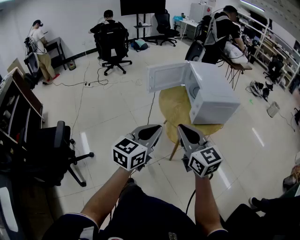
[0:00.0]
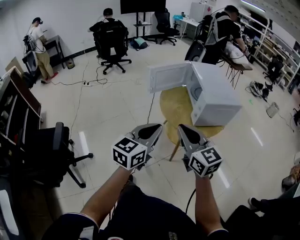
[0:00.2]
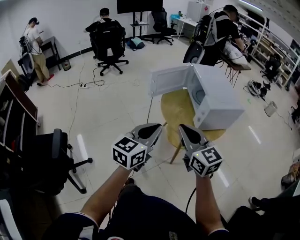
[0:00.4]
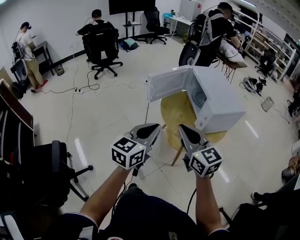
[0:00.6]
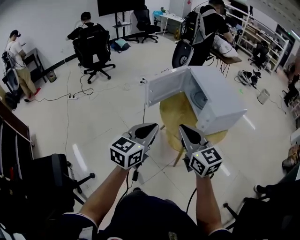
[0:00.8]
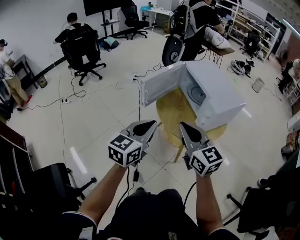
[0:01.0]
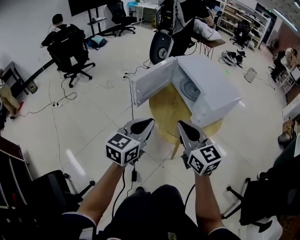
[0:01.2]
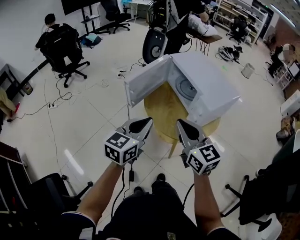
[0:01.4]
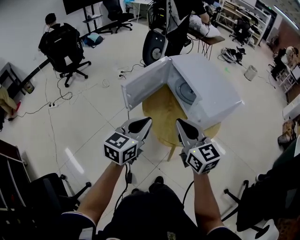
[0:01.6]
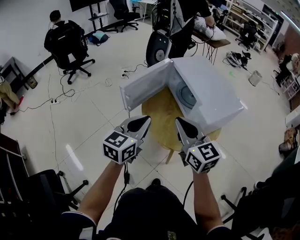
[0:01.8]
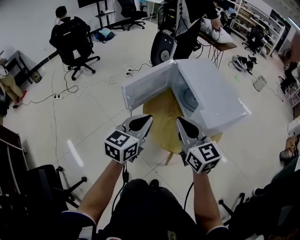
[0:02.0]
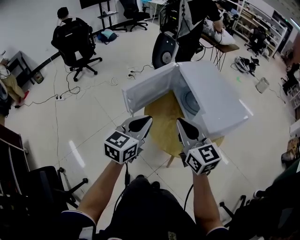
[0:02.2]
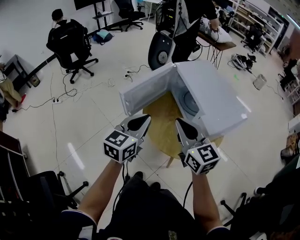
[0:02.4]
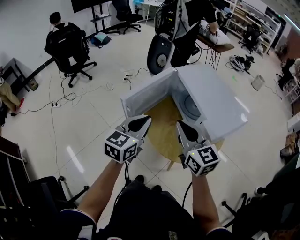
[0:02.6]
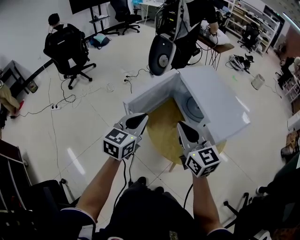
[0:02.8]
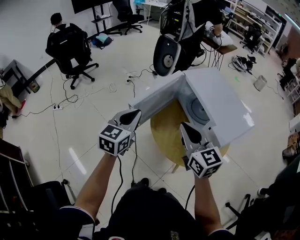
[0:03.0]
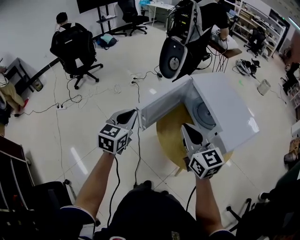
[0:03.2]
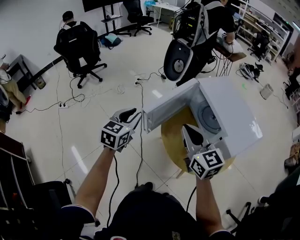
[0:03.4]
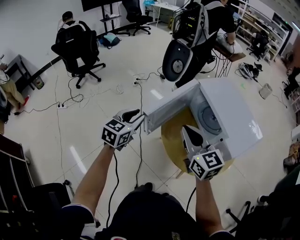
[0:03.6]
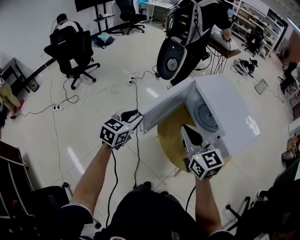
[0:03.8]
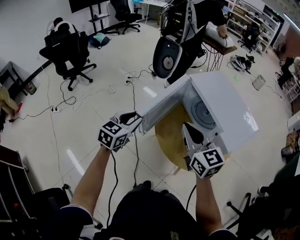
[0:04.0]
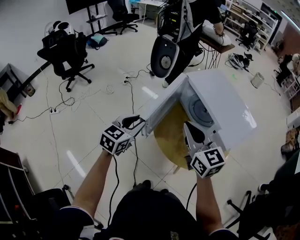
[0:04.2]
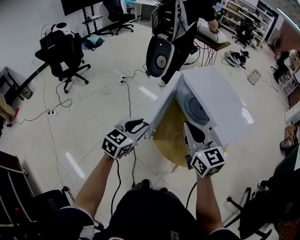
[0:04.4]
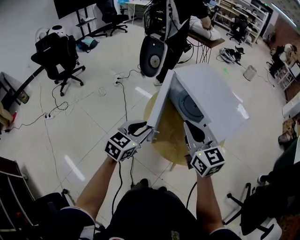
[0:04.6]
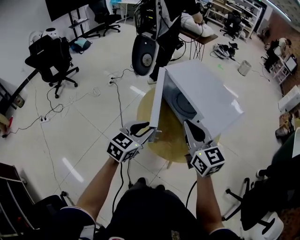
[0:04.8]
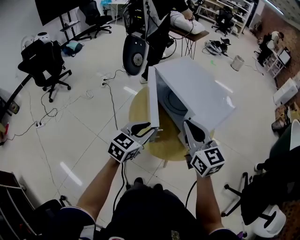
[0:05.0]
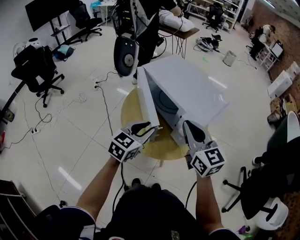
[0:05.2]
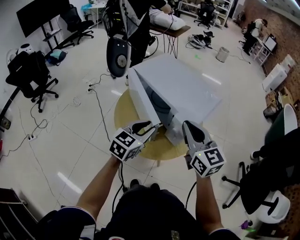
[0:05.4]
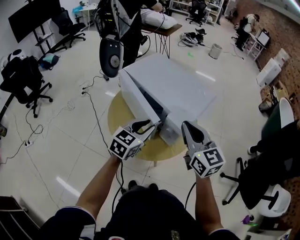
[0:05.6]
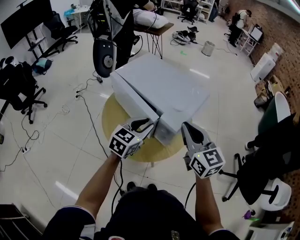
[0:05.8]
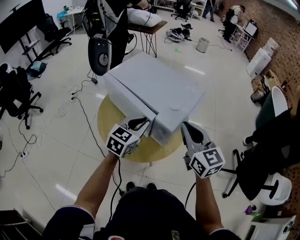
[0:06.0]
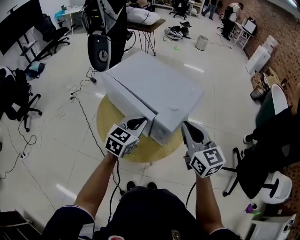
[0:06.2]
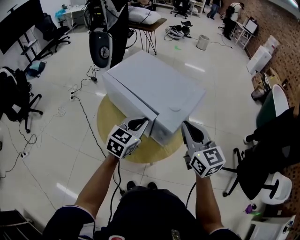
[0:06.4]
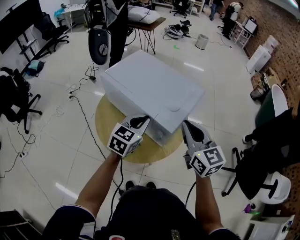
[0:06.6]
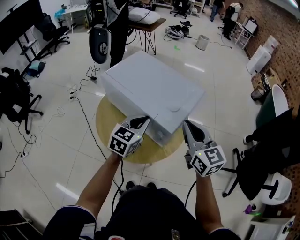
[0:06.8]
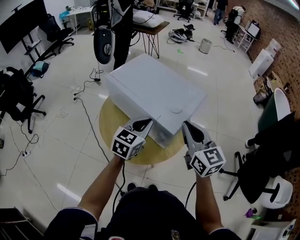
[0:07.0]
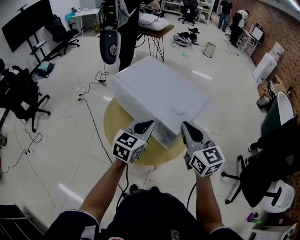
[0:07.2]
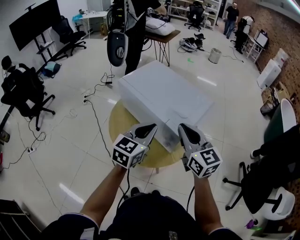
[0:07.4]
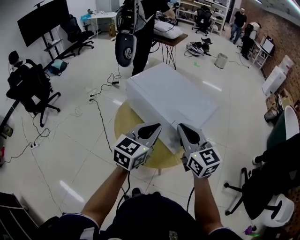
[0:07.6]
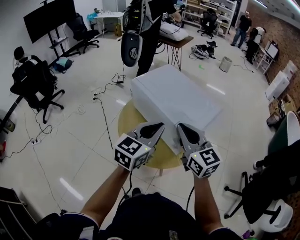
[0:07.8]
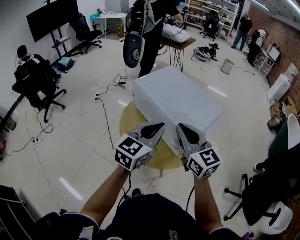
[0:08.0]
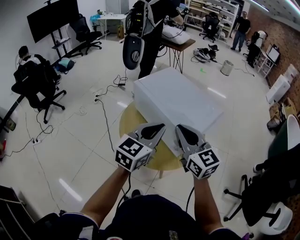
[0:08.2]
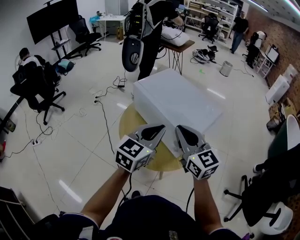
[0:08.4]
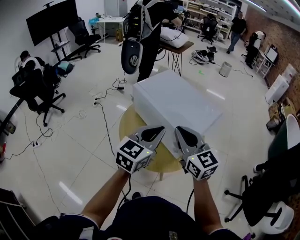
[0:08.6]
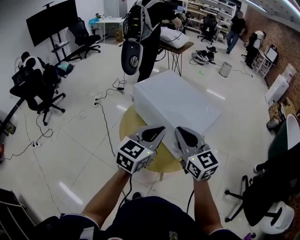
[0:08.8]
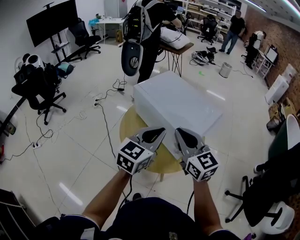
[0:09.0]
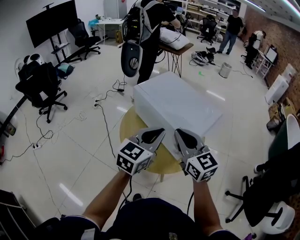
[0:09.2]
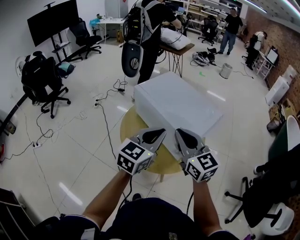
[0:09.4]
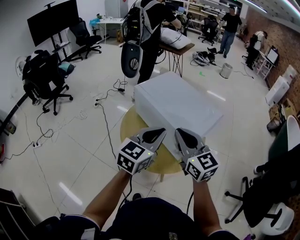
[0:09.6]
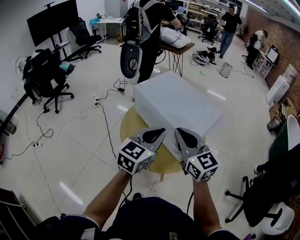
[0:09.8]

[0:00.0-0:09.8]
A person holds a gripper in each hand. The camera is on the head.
0.0 to 1.4 s: The left gripper travels forward and to the left by roughly 25 cm, while the right gripper is displaced forward by roughly 20 cm, and changes its angle by some 20 degrees.
1.4 to 2.8 s: The grippers both shift forward by approximately 15 cm.
2.8 to 4.2 s: The left gripper heads downward and to the left, covering about 10 cm, and opens up.
4.2 to 5.6 s: The two grippers go about 25 cm to the right. The right gripper changes its angle by some 20 degrees. Meanwhile the left gripper rotates roughly 20 degrees.
5.6 to 7.0 s: The left gripper moves approximately 5 cm, and closes.
7.0 to 8.4 s: The left gripper is displaced upward and backward by approximately 10 cm, while the right gripper travels to the left by some 10 cm.
8.4 to 9.8 s: The two grippers keep their place.

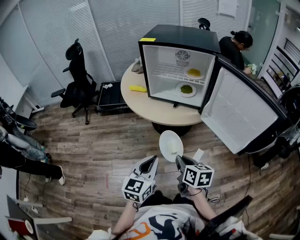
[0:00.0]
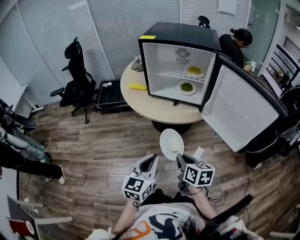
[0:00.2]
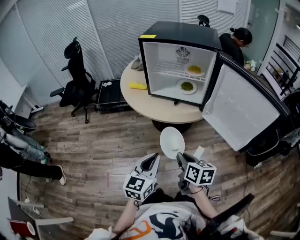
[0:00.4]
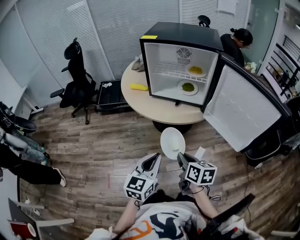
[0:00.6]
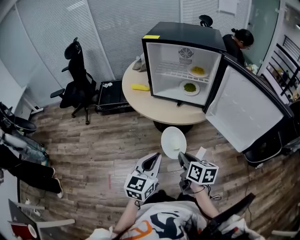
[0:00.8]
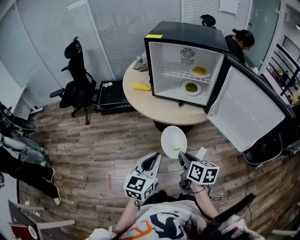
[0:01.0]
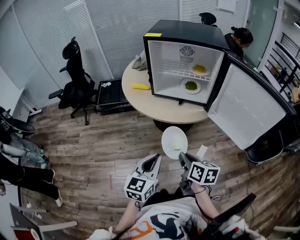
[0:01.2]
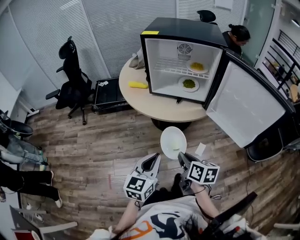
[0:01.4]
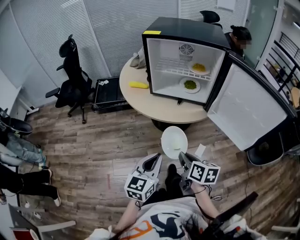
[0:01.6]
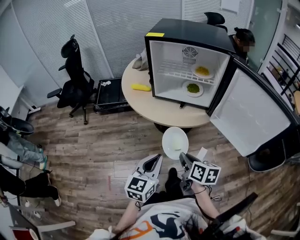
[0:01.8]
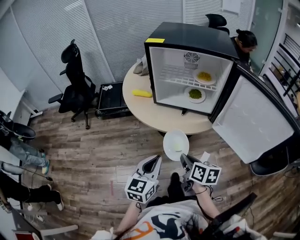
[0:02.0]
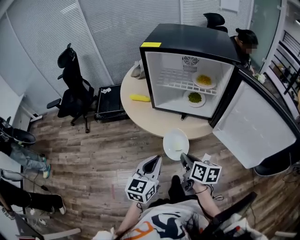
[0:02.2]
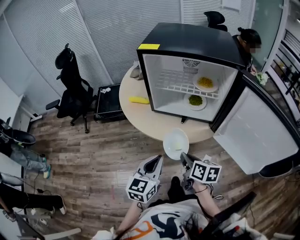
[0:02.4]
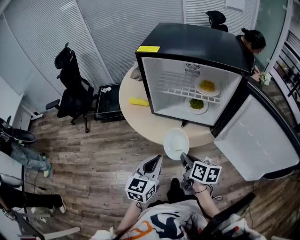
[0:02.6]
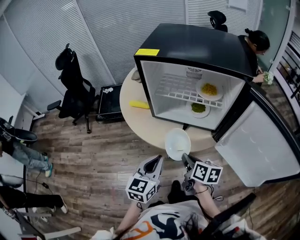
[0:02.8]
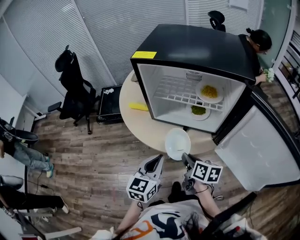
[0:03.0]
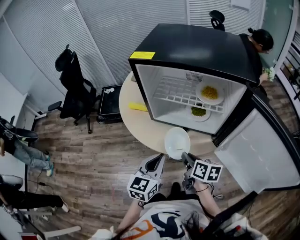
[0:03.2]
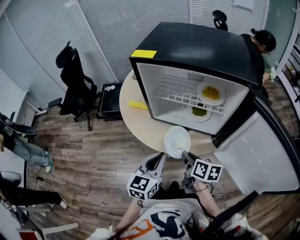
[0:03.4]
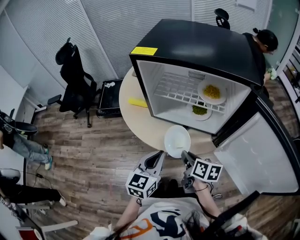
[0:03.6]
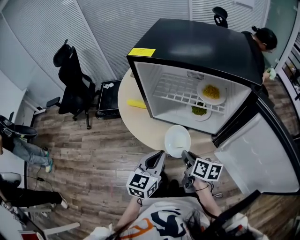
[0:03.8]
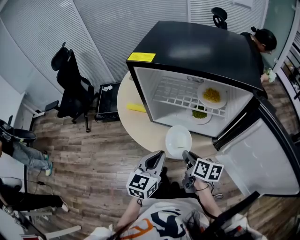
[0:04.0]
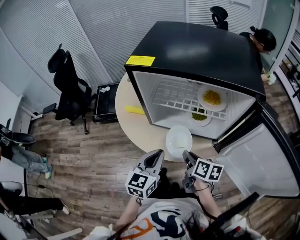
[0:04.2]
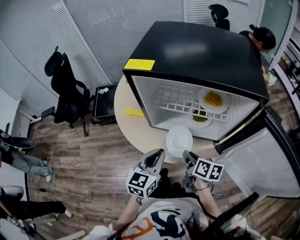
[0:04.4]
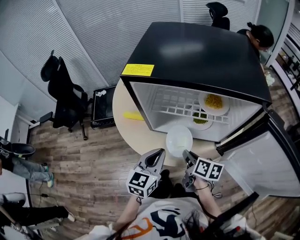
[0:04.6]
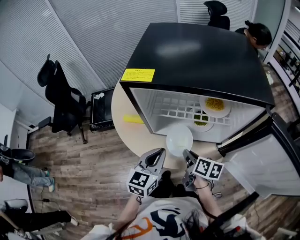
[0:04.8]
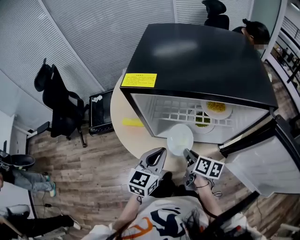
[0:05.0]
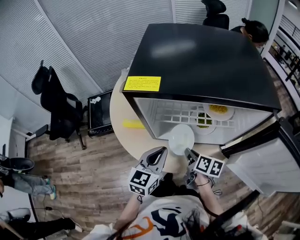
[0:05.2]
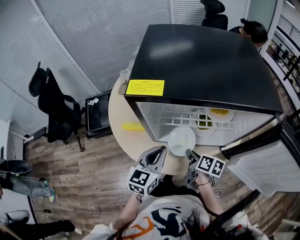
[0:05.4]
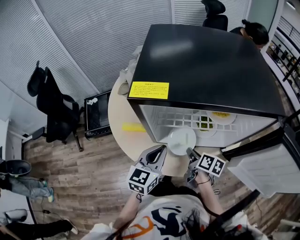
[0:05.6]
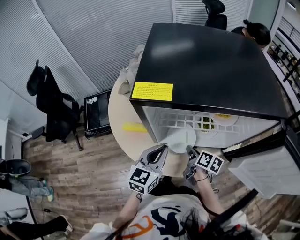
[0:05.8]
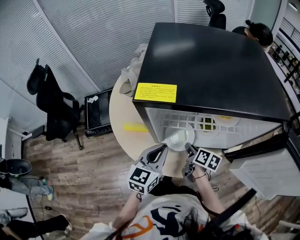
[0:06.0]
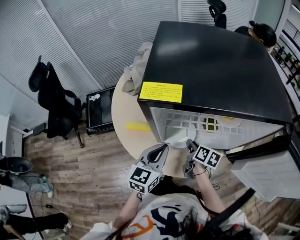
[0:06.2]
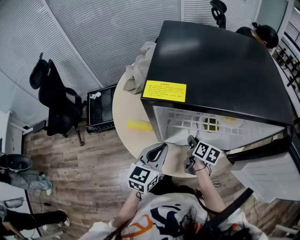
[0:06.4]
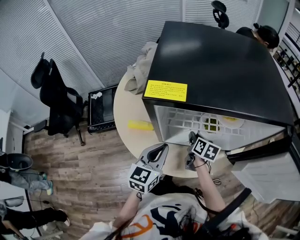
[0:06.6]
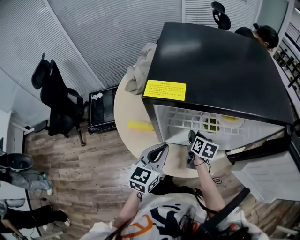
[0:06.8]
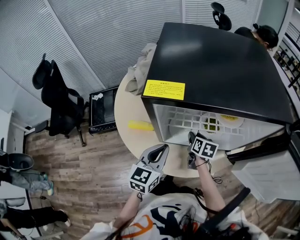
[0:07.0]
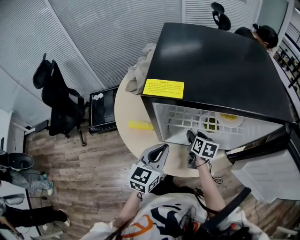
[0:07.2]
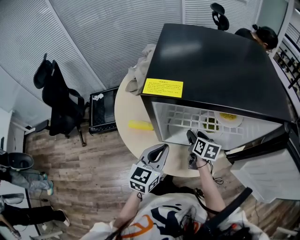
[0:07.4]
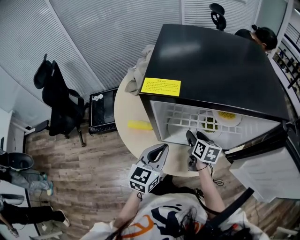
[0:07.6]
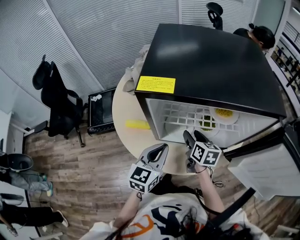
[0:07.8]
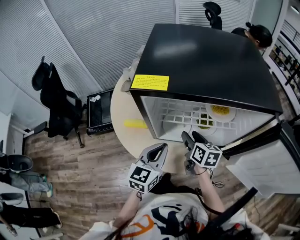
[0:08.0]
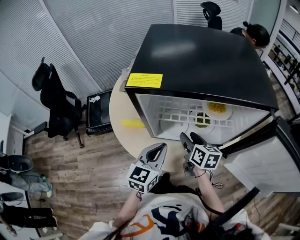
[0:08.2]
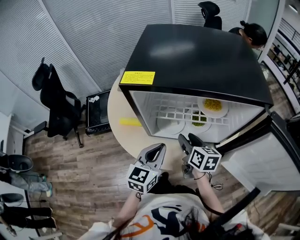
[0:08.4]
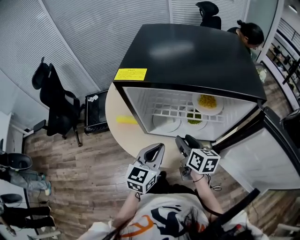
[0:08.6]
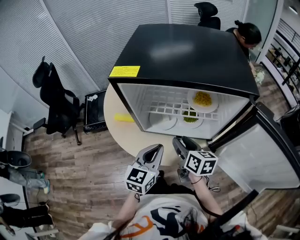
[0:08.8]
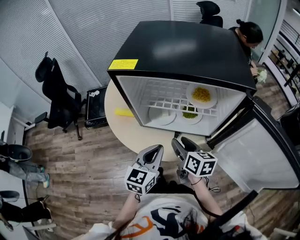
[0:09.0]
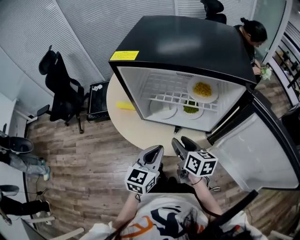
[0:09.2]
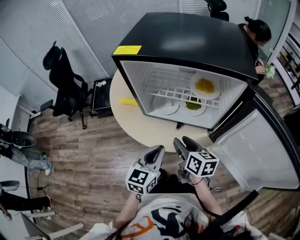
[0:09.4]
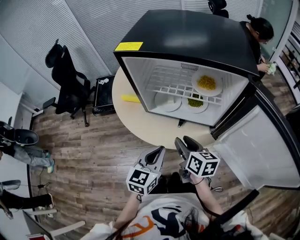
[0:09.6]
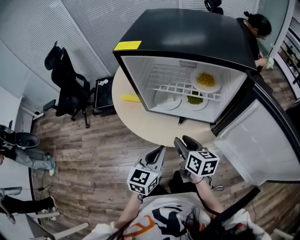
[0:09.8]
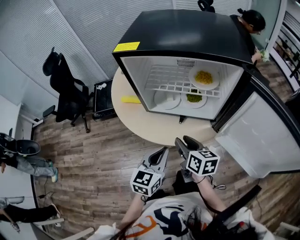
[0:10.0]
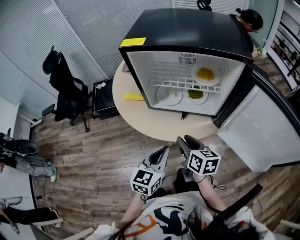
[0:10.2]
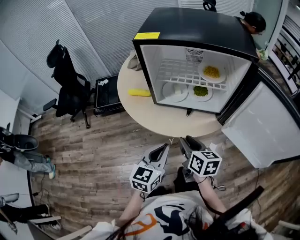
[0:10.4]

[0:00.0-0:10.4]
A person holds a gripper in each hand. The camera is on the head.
0.0 to 1.4 s: The grippers stay close to where they were, moving slightly.
1.4 to 3.0 s: The two grippers go some 20 cm forward.
3.0 to 4.4 s: The grippers both shift forward by about 10 cm.
4.4 to 6.0 s: The right gripper shifts some 15 cm forward and downward. The left gripper is displaced forward by roughly 10 cm.
6.0 to 7.4 s: The right gripper travels forward by roughly 5 cm, swivels some 20 degrees, and opens.
7.4 to 9.0 s: The right gripper travels backward and upward by some 15 cm. The left gripper shifts roughly 15 cm to the right and backward.
9.0 to 10.4 s: The left gripper shifts about 10 cm backward. Meanwhile the right gripper heads backward and to the left, covering some 15 cm.

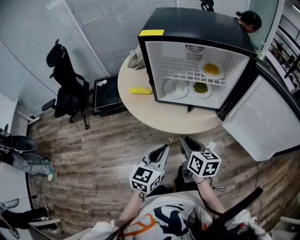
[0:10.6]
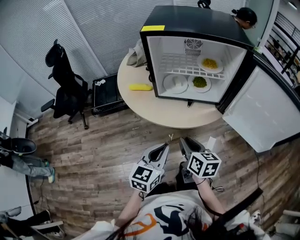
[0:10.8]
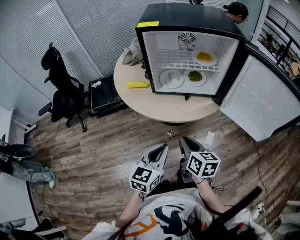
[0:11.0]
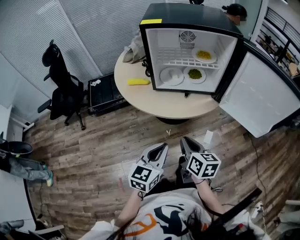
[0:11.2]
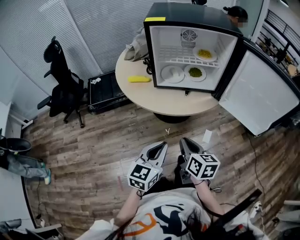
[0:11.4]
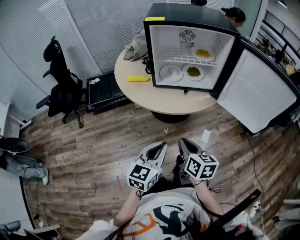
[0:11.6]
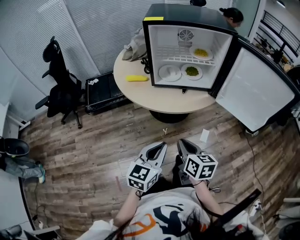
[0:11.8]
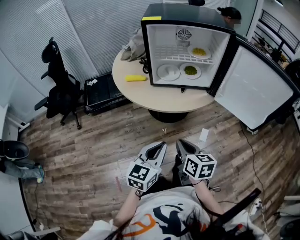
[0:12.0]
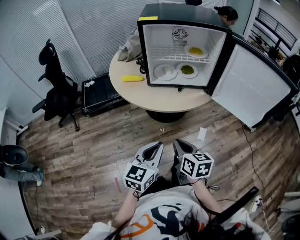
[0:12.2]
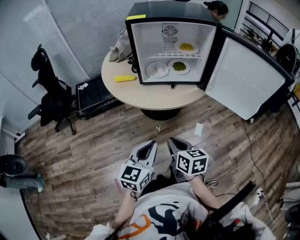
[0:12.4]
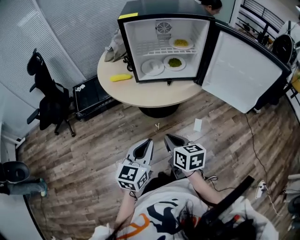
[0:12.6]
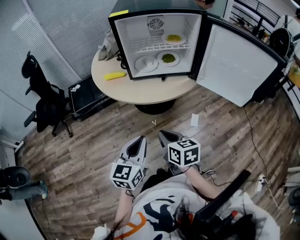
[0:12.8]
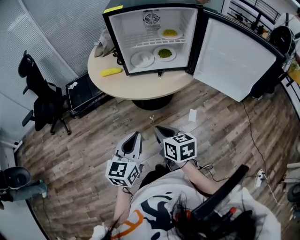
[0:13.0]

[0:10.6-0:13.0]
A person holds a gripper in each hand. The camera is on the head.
10.6 to 11.8 s: The two grippers go approximately 15 cm backward. The right gripper closes up.
11.8 to 13.0 s: There are only small adjustments of the grippers.

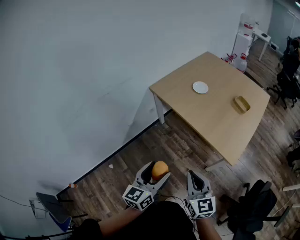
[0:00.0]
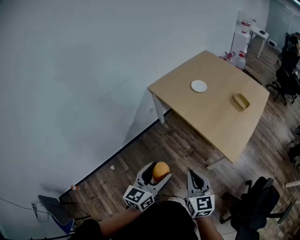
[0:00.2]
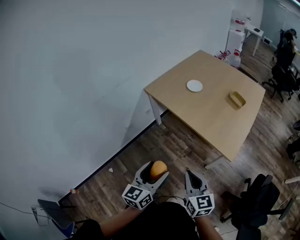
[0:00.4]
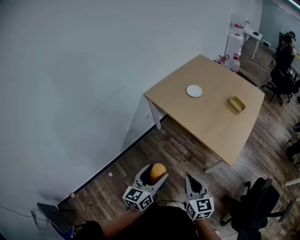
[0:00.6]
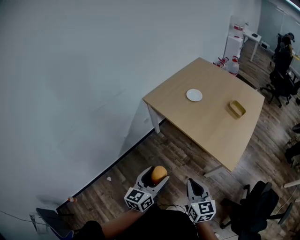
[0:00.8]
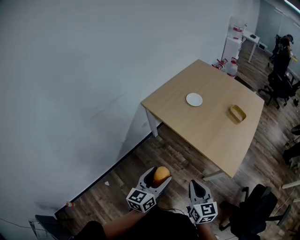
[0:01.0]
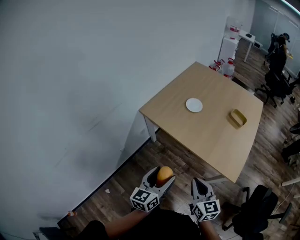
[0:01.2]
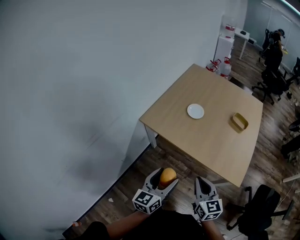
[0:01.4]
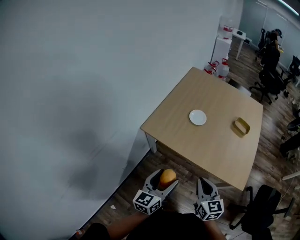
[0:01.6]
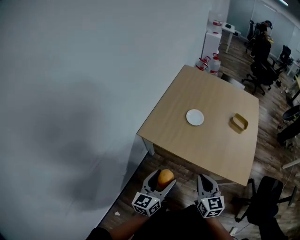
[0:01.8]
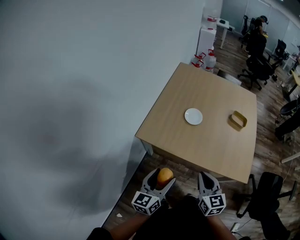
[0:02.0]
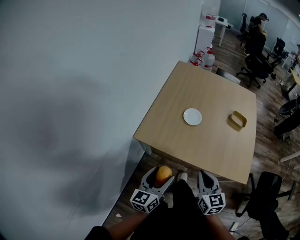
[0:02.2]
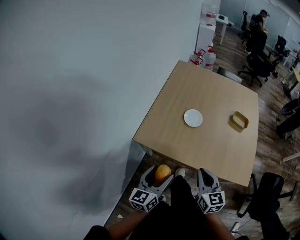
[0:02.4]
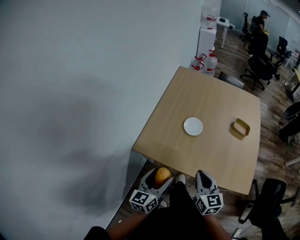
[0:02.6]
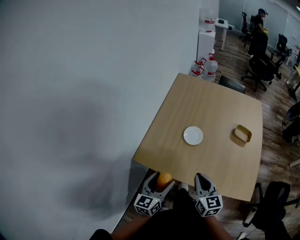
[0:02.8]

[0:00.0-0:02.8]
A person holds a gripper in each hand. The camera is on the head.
0.0 to 1.4 s: The two grippers go some 20 cm forward.
1.4 to 2.8 s: The left gripper moves forward and to the left, approximately 25 cm. Meanwhile the right gripper goes approximately 25 cm forward.
